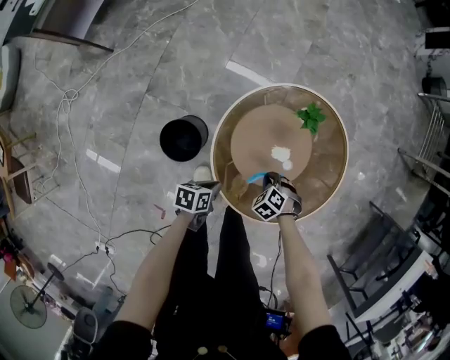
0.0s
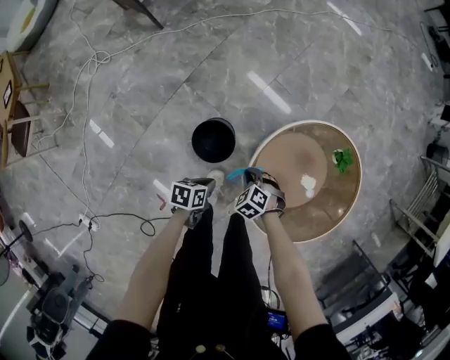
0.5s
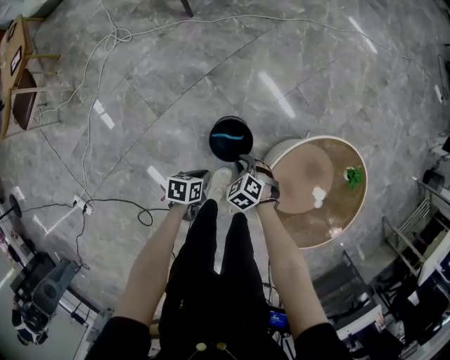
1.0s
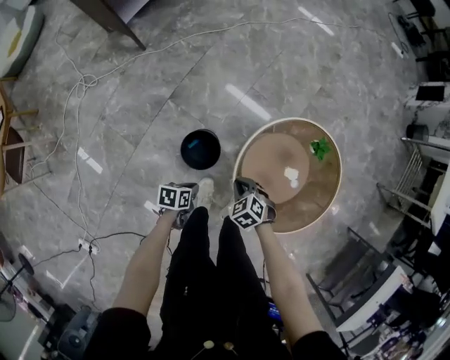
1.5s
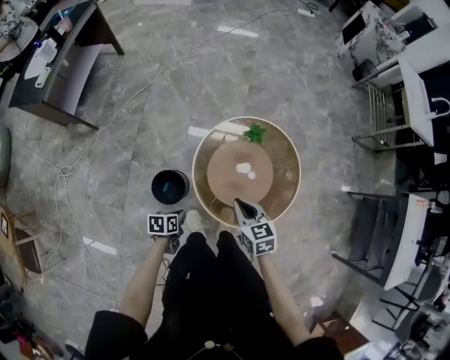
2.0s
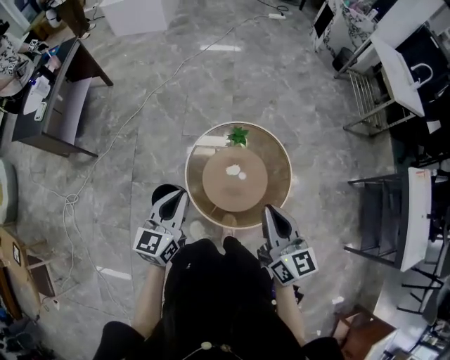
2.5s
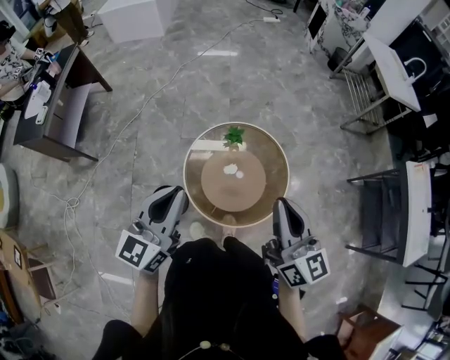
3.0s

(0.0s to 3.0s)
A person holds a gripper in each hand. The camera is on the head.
0.0s - 1.5s: The right gripper changes place by approximately 25 cm; the left gripper changes place by some 20 cm.
1.5s - 3.0s: The left gripper shifts approximately 50 cm upward, and tilts its fingers approximately 50 degrees upward. Meanwhile the right gripper travels upward and to the right by roughly 60 cm, and points its fingers some 70 degrees further upward.

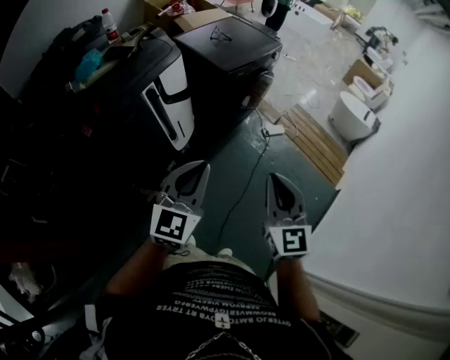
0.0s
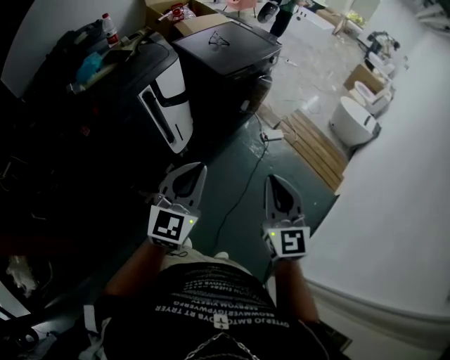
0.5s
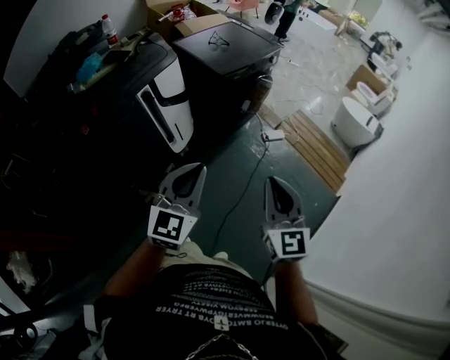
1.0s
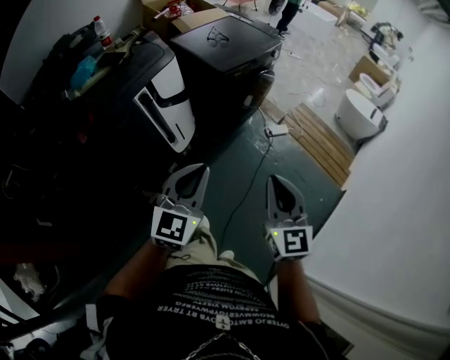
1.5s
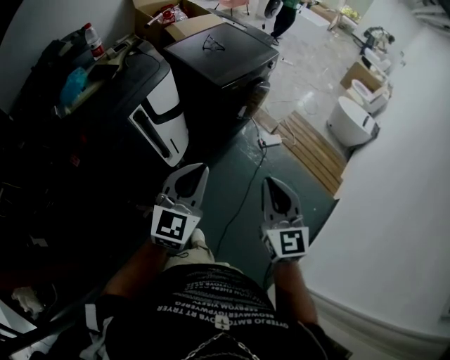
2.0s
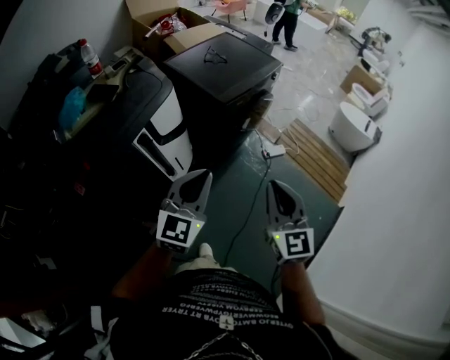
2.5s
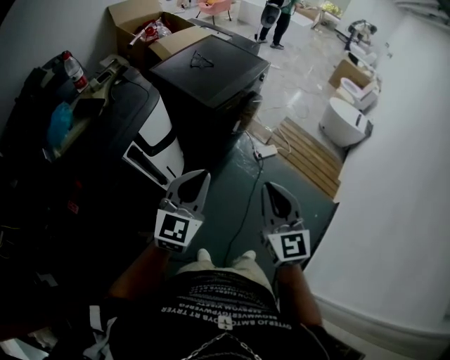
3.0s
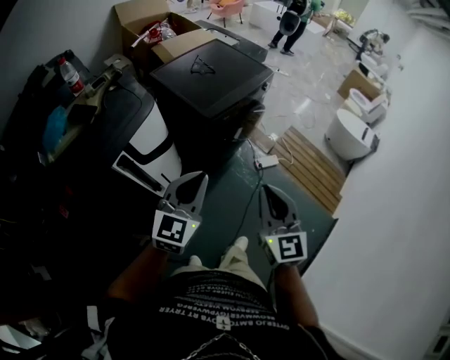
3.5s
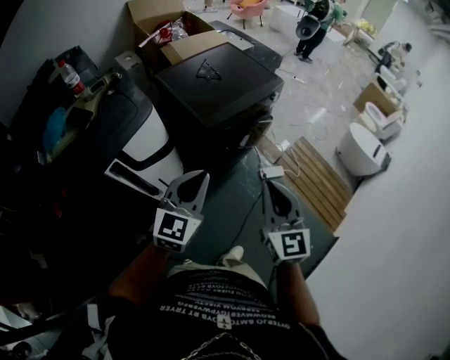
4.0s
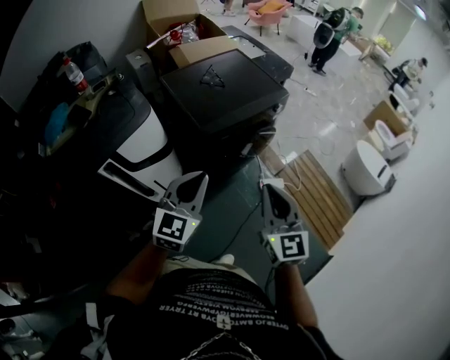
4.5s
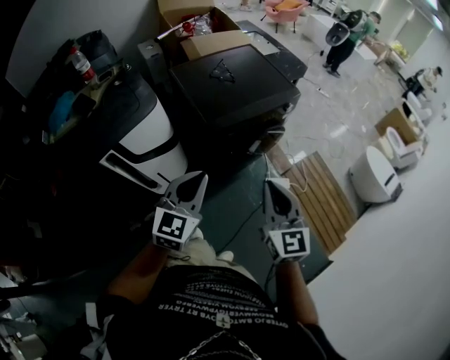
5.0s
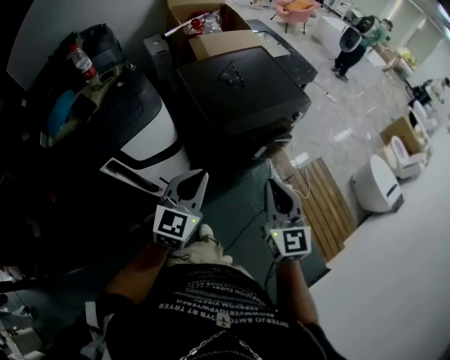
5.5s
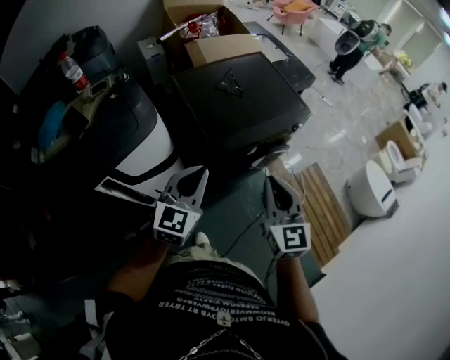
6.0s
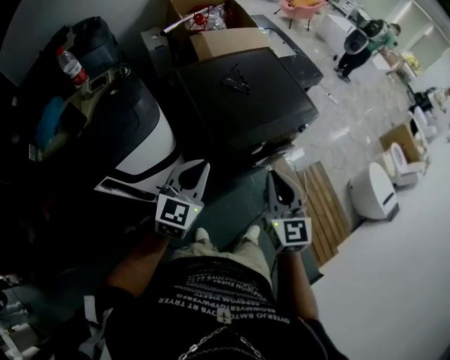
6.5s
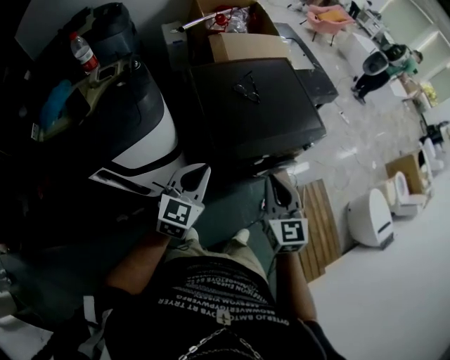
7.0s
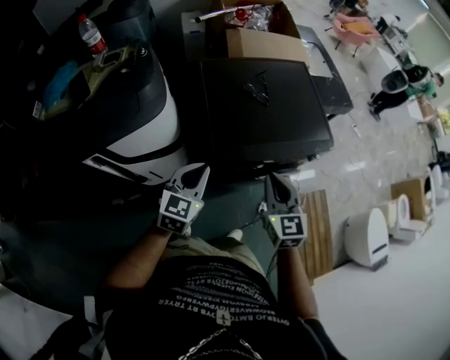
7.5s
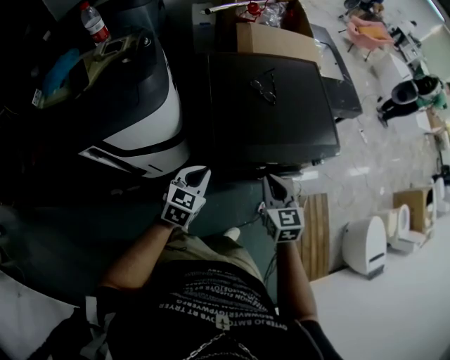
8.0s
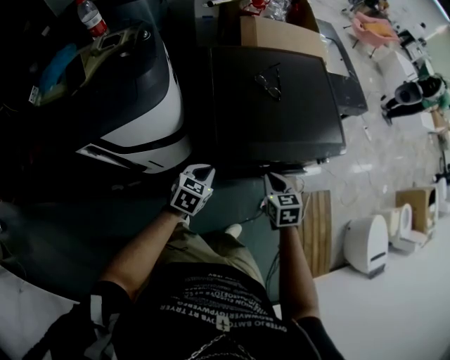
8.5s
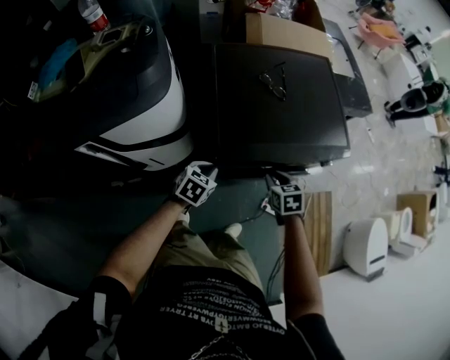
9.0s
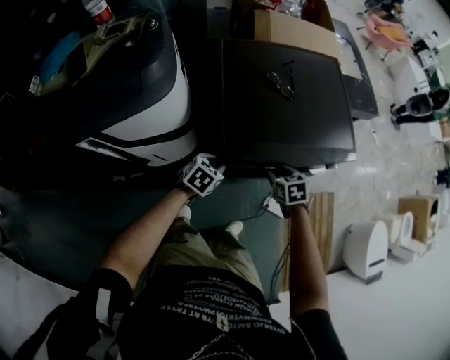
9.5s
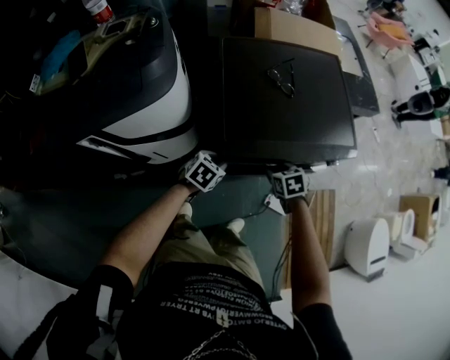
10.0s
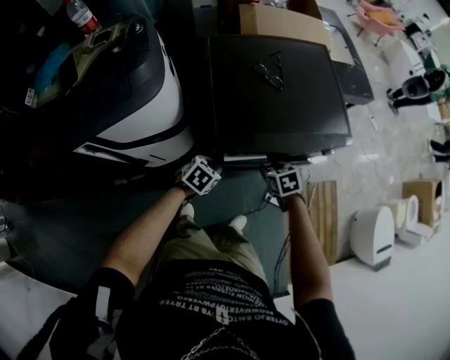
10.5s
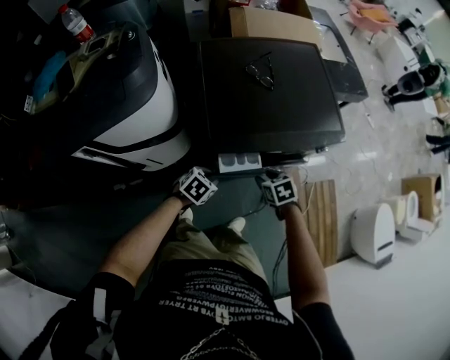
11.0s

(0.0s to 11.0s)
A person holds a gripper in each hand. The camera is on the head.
0.0s - 2.0s: The grippers both shift forward by roughly 10 cm.
2.0s - 3.5s: Both grippers move forward, about 15 cm.
3.5s - 5.5s: The two grippers go about 20 cm forward. The left gripper changes its angle by roughly 20 degrees.
5.5s - 7.5s: The left gripper moves forward and downward, roughly 20 cm, and changes its angle by roughly 20 degrees. The right gripper shifts approximately 25 cm forward, and swivels about 20 degrees.
7.5s - 9.0s: The grippers both shift downward by roughly 20 cm. The right gripper tilts its fingers some 40 degrees downward. The left gripper swivels about 30 degrees.
9.0s - 11.0s: The left gripper ends up approximately 5 cm from where it was. Meanwhile the right gripper shifts by about 5 cm.

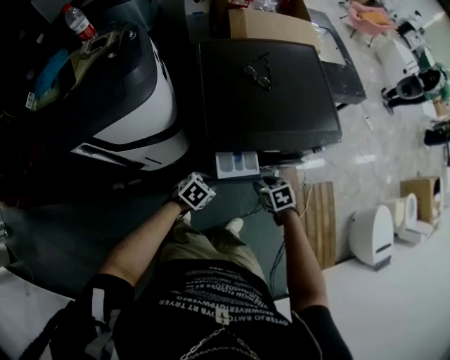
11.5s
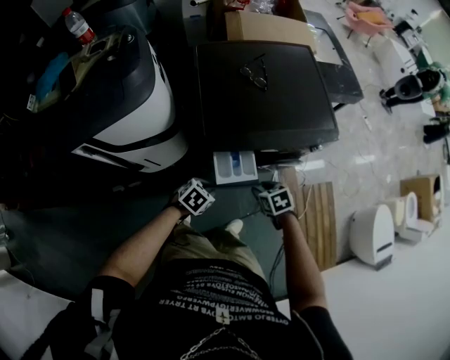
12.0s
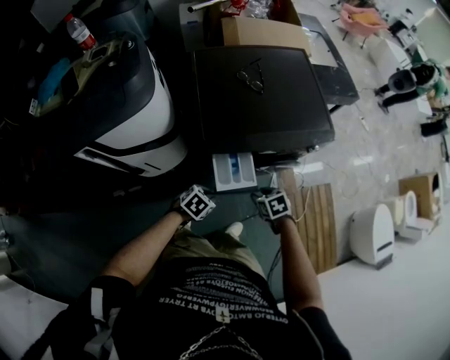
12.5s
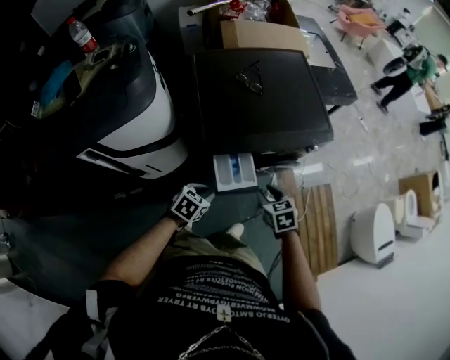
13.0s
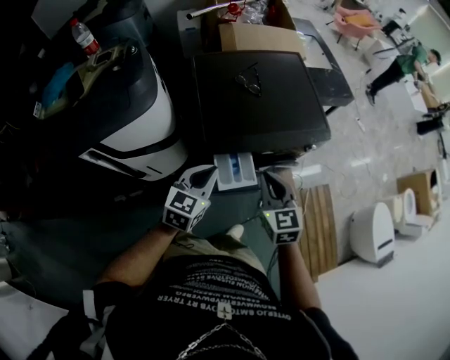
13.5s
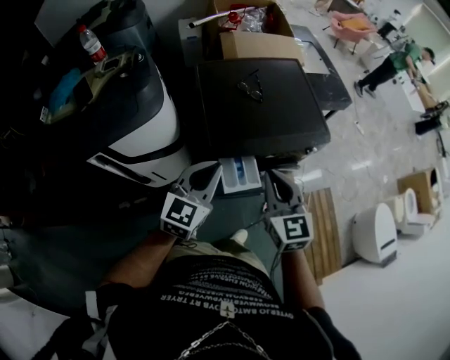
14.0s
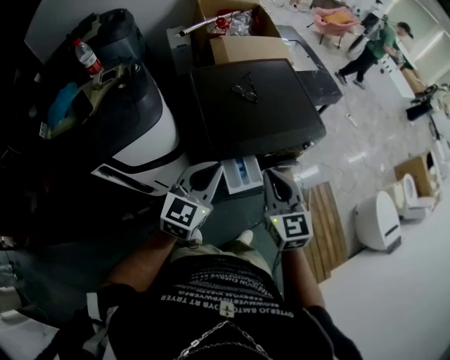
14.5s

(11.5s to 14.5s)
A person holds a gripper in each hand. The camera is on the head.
11.5s - 13.0s: The right gripper shifts approximately 10 cm upward. Meanwhile the left gripper moves roughly 5 cm.
13.0s - 14.5s: Both grippers travel together upward, approximately 30 cm. The left gripper angles its fingers upward, by about 40 degrees, and closes. Meanwhile the right gripper angles its fingers upward, by roughly 40 degrees, and closes.

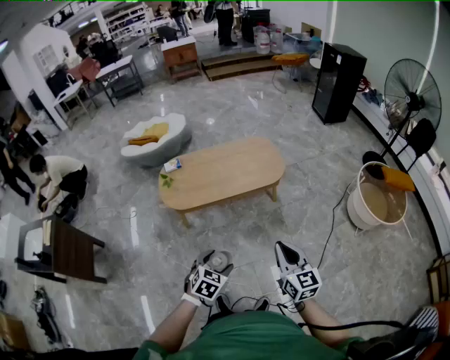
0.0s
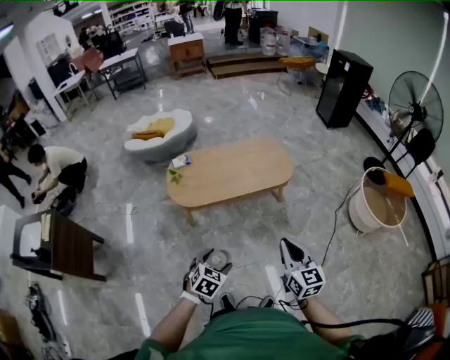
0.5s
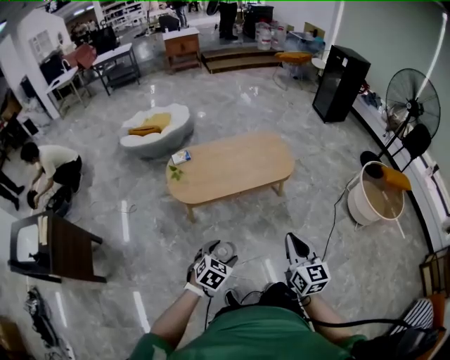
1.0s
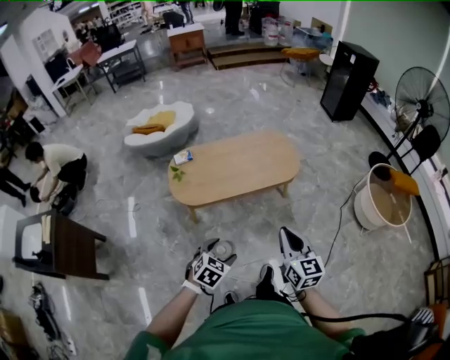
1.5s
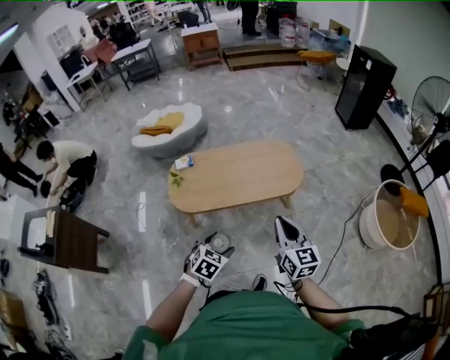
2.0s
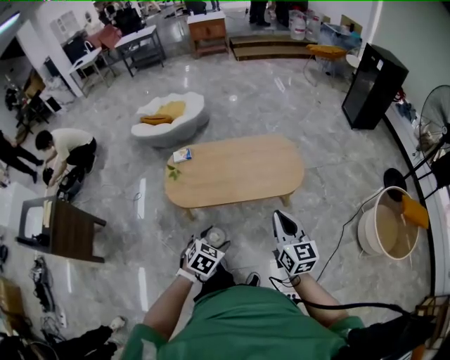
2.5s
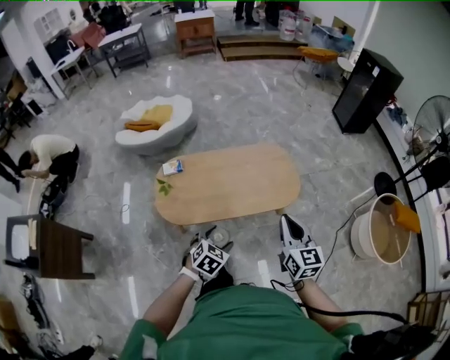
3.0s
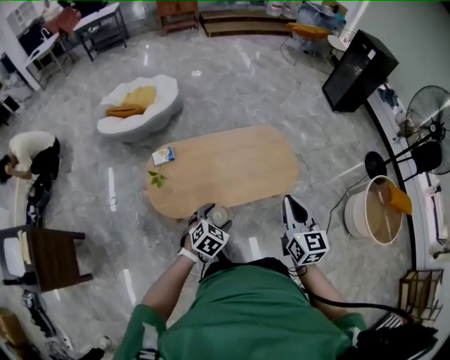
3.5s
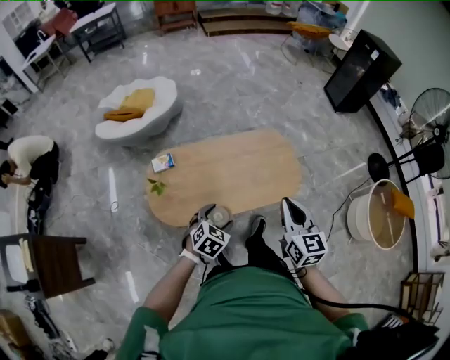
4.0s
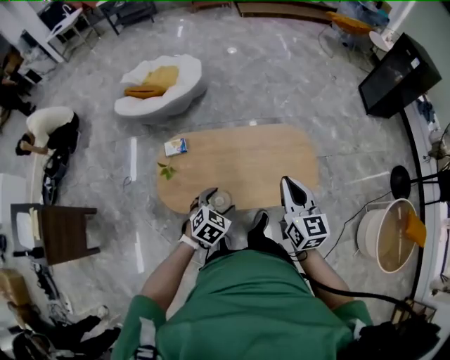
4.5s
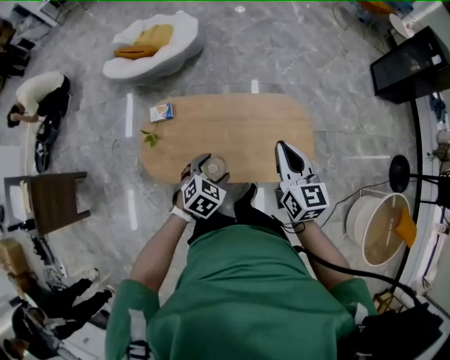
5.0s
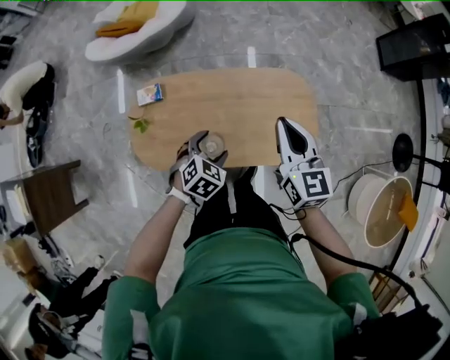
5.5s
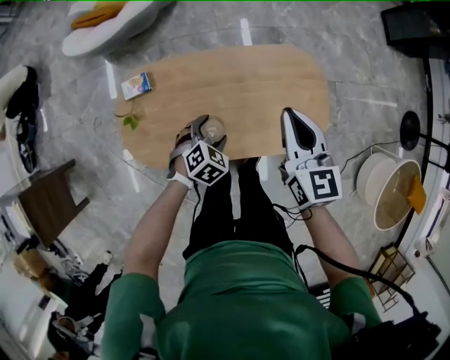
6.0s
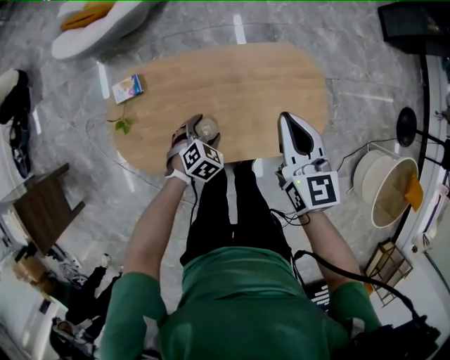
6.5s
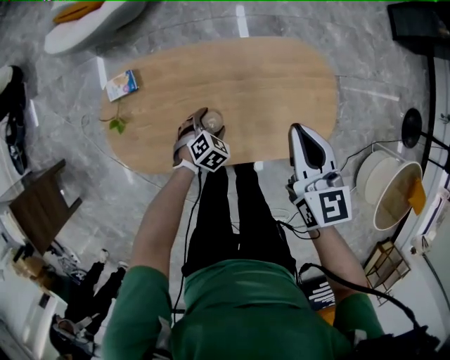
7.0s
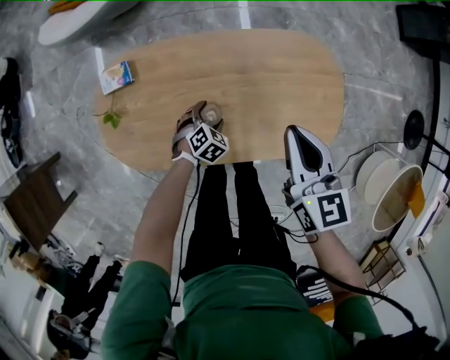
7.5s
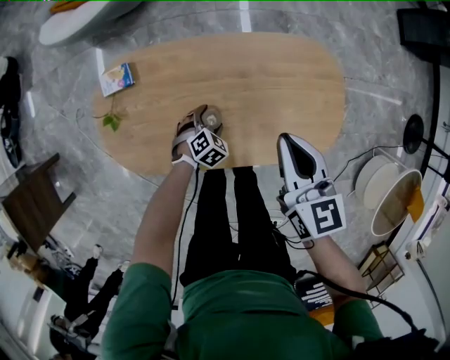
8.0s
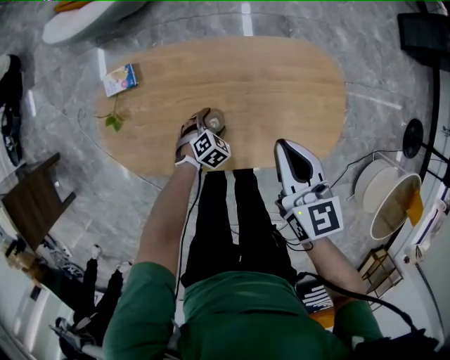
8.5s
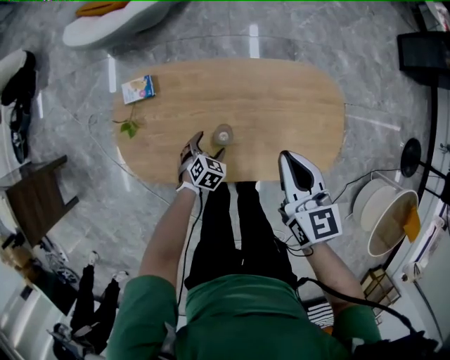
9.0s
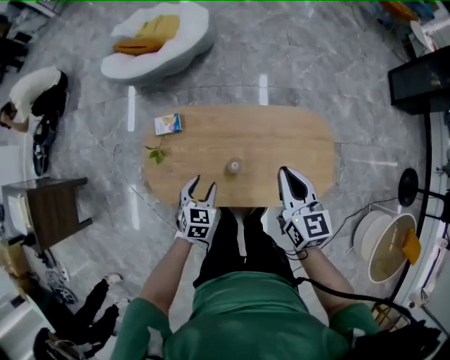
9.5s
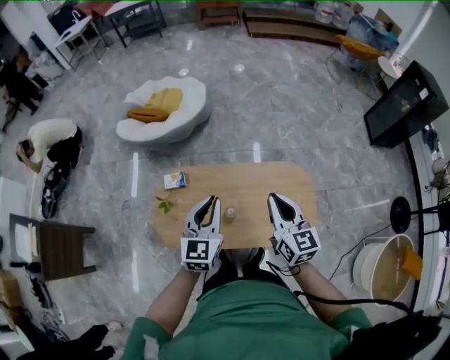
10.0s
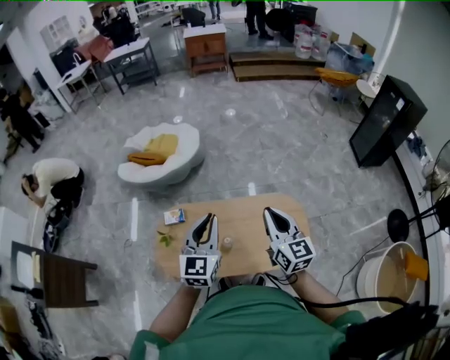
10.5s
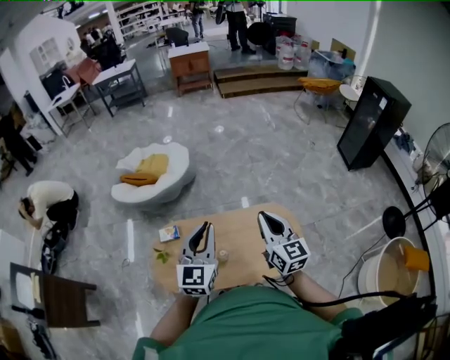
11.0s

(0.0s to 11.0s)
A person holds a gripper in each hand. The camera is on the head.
0.0s - 2.0s: The two grippers go about 20 cm forward.
2.0s - 3.5s: The left gripper moves forward, roughly 30 cm. Meanwhile the right gripper moves forward and to the left, some 25 cm.
3.5s - 5.5s: The two grippers go roughly 35 cm forward.
5.5s - 7.5s: The left gripper moves downward, some 35 cm. Meanwhile the right gripper shifts about 20 cm downward.
7.5s - 9.0s: The right gripper changes place by some 5 cm. Meanwhile the left gripper goes some 5 cm to the left.
9.0s - 11.0s: The left gripper is displaced upward by about 70 cm, angles its fingers upward, by about 60 degrees, and closes up, while the right gripper moves upward, about 35 cm, and swivels about 30 degrees.
